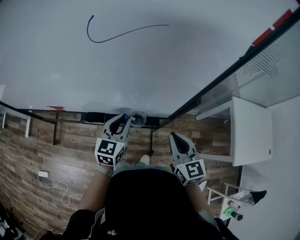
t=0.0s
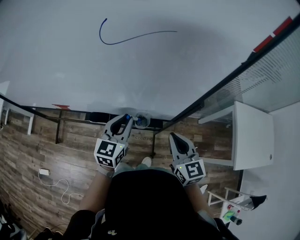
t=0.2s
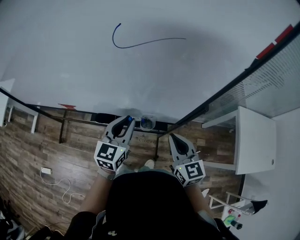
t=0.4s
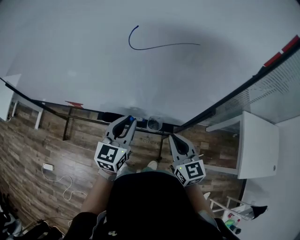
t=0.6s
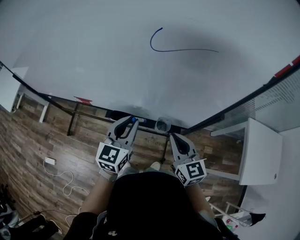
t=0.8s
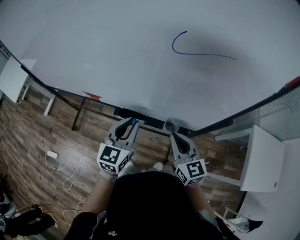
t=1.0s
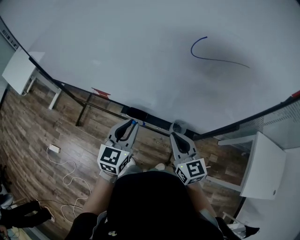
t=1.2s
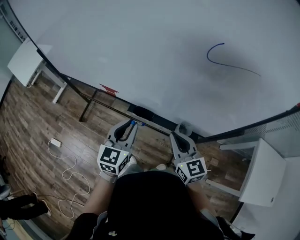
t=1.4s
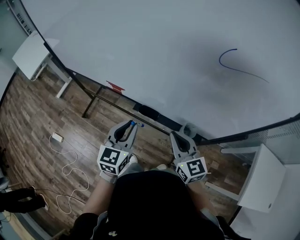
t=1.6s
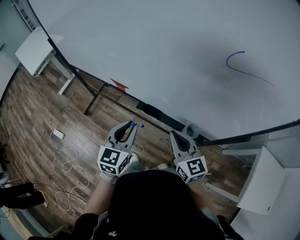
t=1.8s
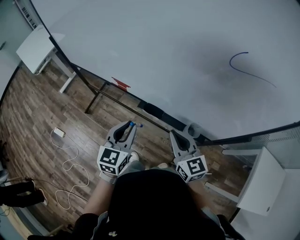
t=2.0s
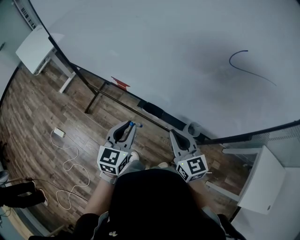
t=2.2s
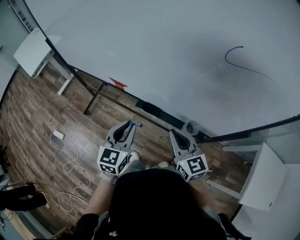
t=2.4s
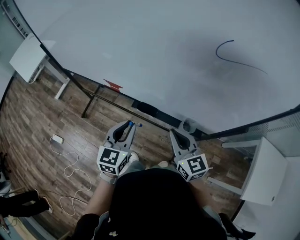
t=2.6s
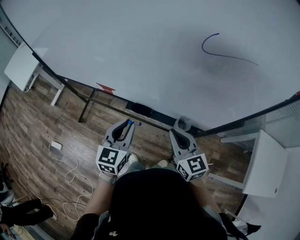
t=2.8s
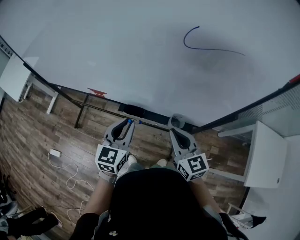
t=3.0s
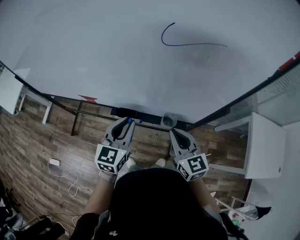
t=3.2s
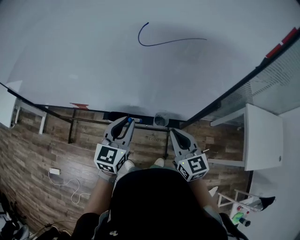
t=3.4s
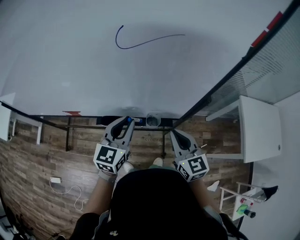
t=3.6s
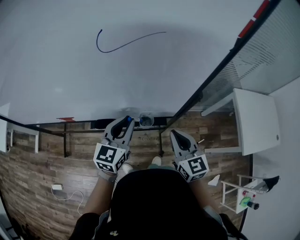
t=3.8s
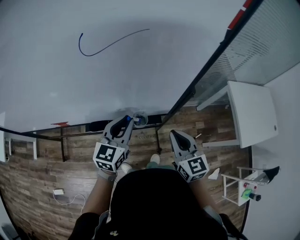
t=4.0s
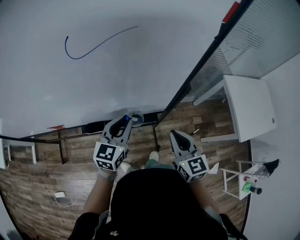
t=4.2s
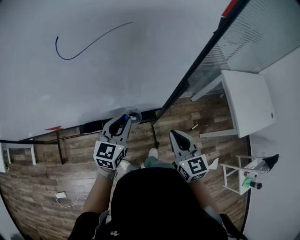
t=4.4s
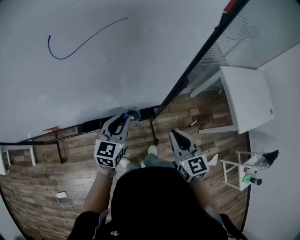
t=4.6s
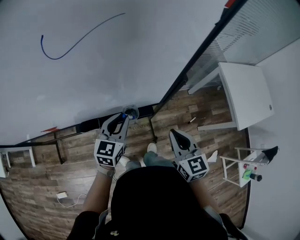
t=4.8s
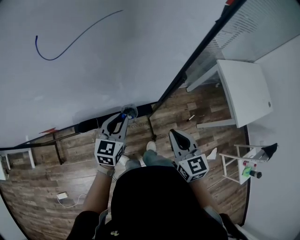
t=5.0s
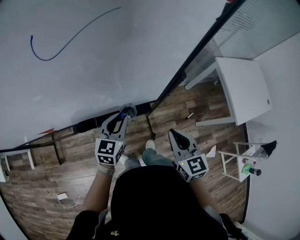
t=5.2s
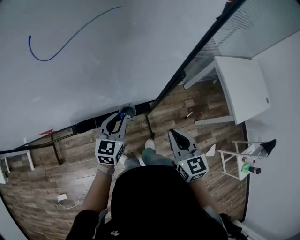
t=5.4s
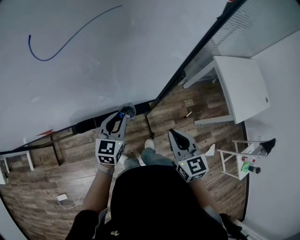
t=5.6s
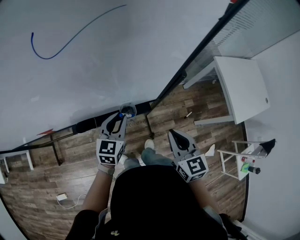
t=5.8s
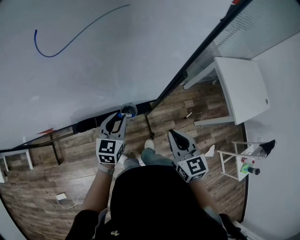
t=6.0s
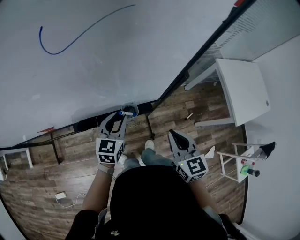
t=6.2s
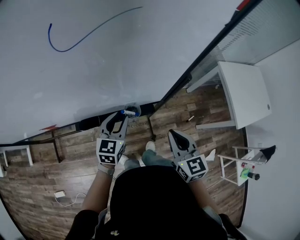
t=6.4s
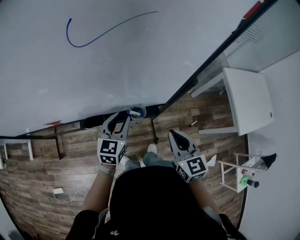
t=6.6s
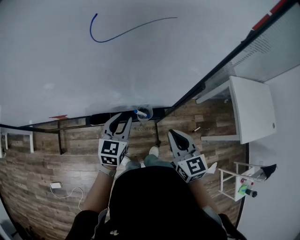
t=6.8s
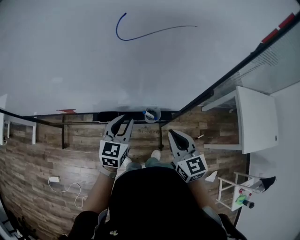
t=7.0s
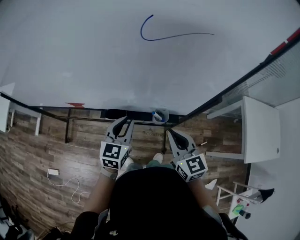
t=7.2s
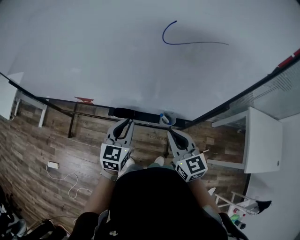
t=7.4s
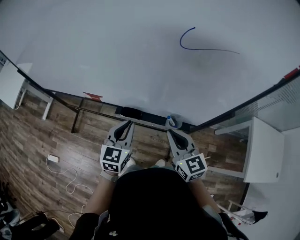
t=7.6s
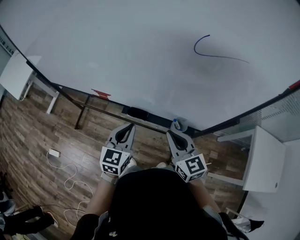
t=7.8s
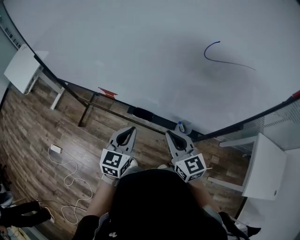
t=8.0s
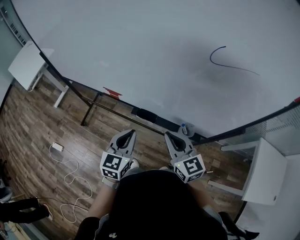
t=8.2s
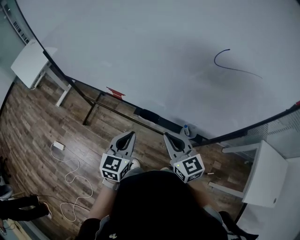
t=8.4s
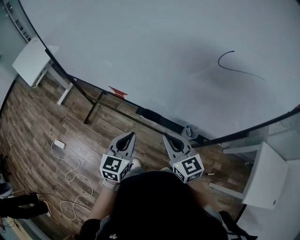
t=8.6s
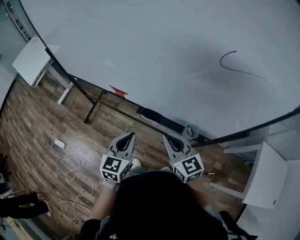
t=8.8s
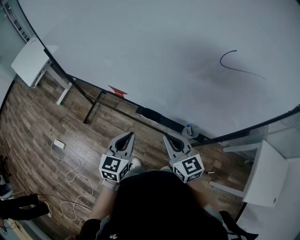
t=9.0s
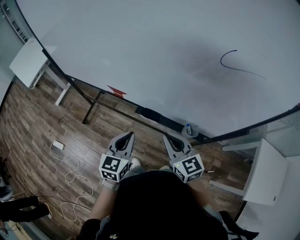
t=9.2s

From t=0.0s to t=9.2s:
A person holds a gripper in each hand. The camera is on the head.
From t=0.0s to t=1.6s: The right gripper shifts by some 25 cm, and swivels about 30 degrees; the left gripper shifts by about 25 cm, and changes its angle by roughly 20 degrees.
From t=1.6s to t=3.0s: The two grippers go approximately 5 cm to the right.
From t=3.0s to t=4.6s: The right gripper shifts by roughly 20 cm, and rotates about 30 degrees; the left gripper moves approximately 20 cm, and swivels about 30 degrees.
From t=4.6s to t=6.2s: The left gripper heads downward, covering roughly 5 cm.
From t=6.2s to t=7.6s: The left gripper shifts by some 20 cm, and swivels some 30 degrees, while the right gripper changes place by some 20 cm, and rotates about 30 degrees.
From t=7.6s to t=9.2s: Both grippers travel together to the left, some 10 cm.

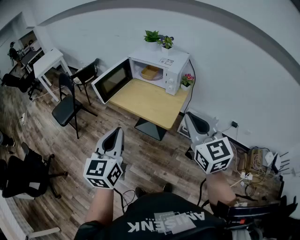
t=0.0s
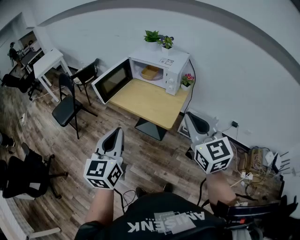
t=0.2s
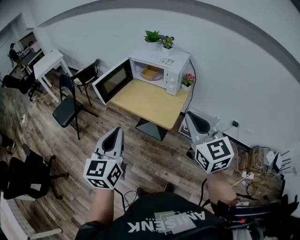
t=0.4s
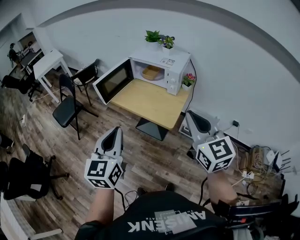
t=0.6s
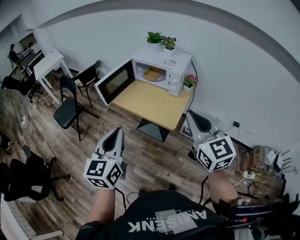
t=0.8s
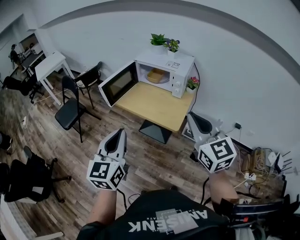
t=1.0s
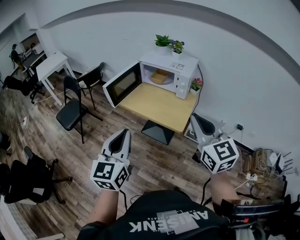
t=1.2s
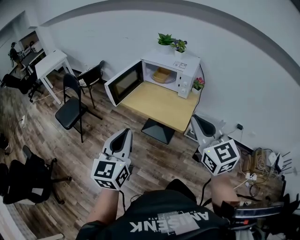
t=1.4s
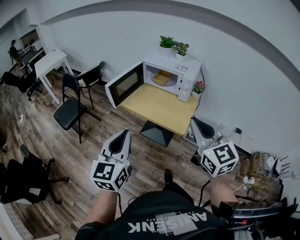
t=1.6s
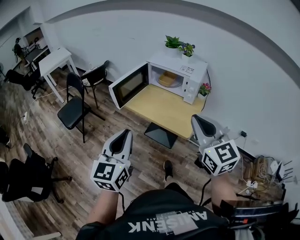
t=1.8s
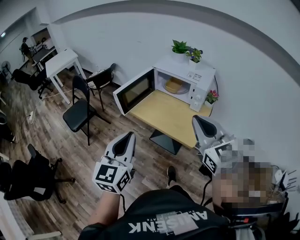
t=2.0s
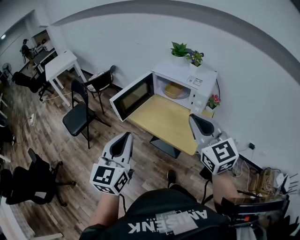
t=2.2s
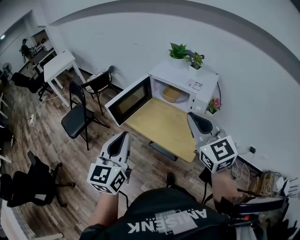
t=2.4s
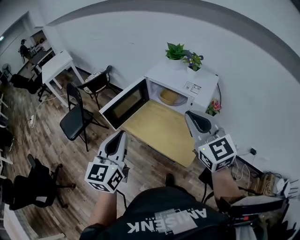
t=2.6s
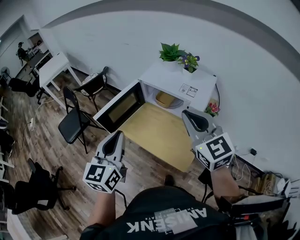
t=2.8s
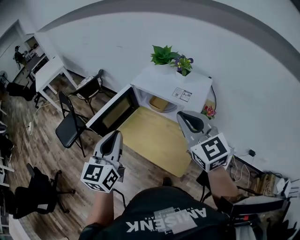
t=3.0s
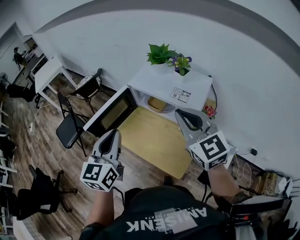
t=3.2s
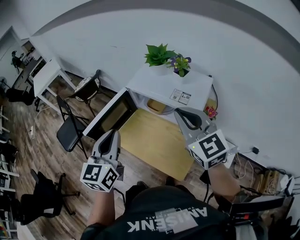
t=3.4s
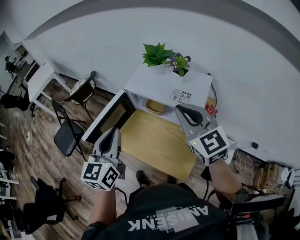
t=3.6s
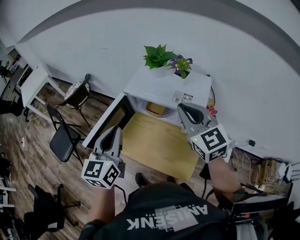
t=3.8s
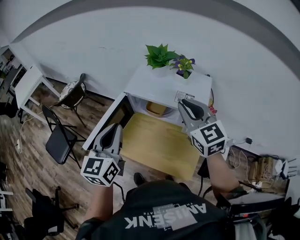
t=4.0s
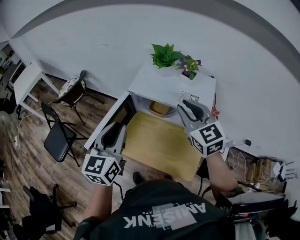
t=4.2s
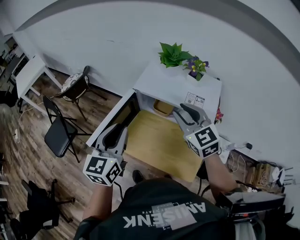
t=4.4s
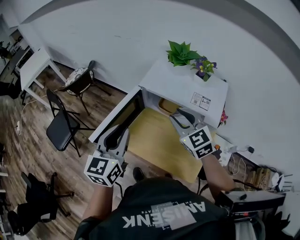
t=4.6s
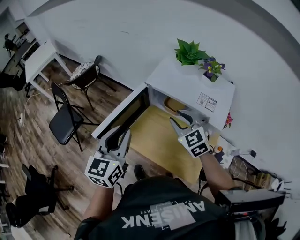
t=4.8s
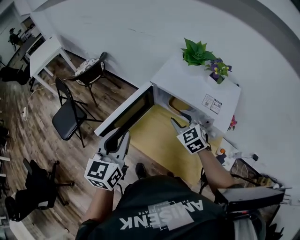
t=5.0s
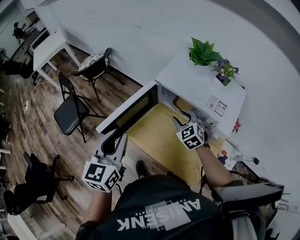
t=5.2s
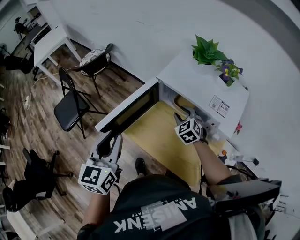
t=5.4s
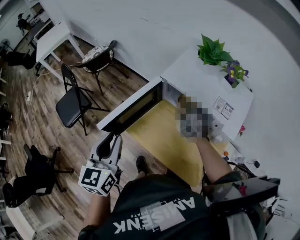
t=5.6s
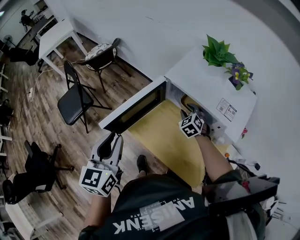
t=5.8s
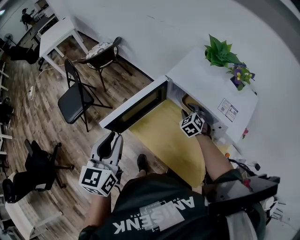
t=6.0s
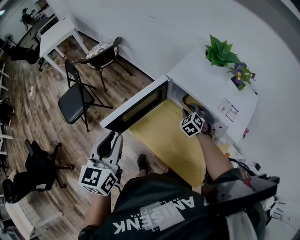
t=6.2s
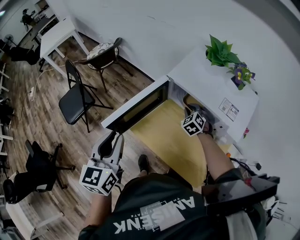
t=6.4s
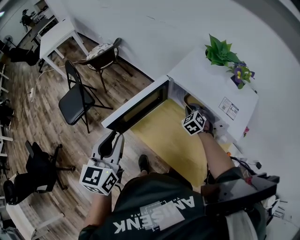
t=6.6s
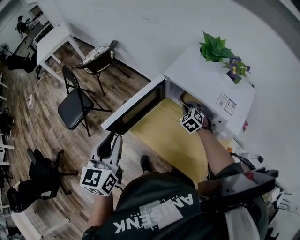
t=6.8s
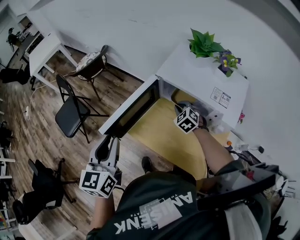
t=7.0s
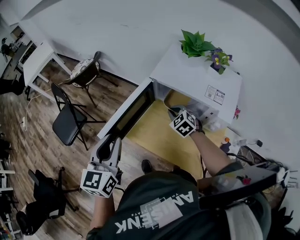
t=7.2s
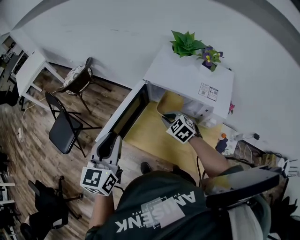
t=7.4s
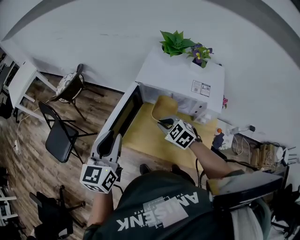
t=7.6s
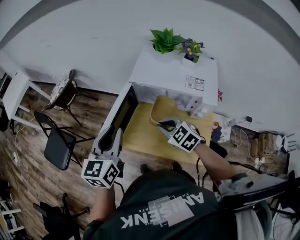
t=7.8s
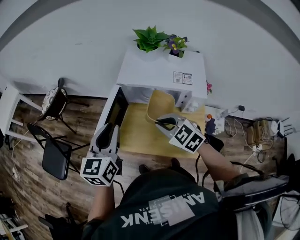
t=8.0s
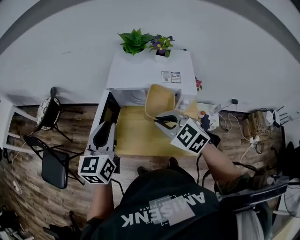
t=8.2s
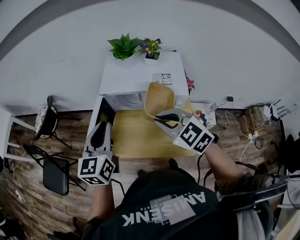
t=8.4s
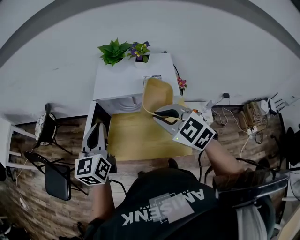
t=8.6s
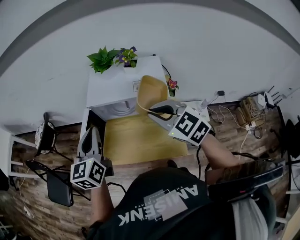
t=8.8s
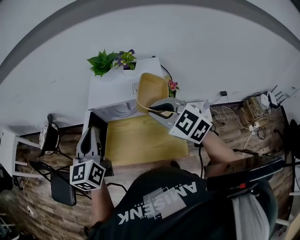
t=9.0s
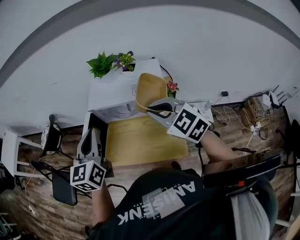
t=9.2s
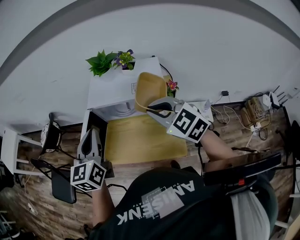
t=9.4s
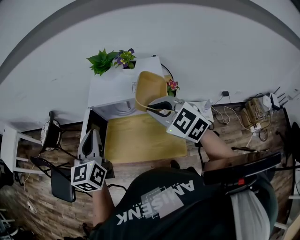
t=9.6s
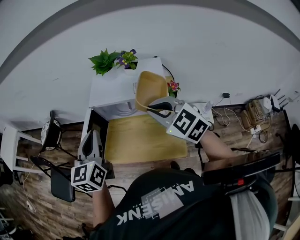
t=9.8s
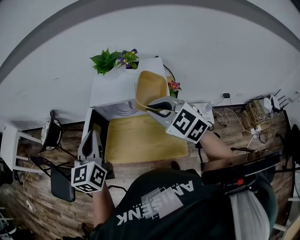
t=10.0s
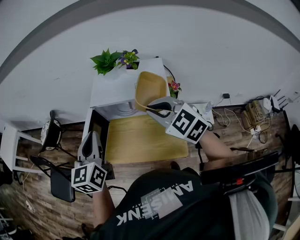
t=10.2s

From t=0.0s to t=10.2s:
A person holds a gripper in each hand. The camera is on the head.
From t=0.0s to t=1.4s: The two grippers go about 10 cm to the left.
From t=1.4s to t=3.0s: The grippers both shift forward by roughly 35 cm.
From t=3.0s to t=4.4s: The right gripper is displaced forward and downward by roughly 15 cm, and opens. Meanwhile the left gripper shifts roughly 15 cm forward.
From t=4.4s to t=5.8s: The right gripper shifts about 30 cm downward and forward, and changes its angle by roughly 30 degrees, while the left gripper travels to the left by roughly 10 cm, and swivels some 20 degrees.
From t=5.8s to t=7.2s: The right gripper goes approximately 5 cm to the left, and closes up.
From t=7.2s to t=8.8s: The right gripper is displaced upward and backward by some 30 cm, and swivels roughly 20 degrees; the left gripper goes approximately 15 cm to the right, forward and upward, and changes its angle by approximately 20 degrees.
From t=8.8s to t=10.2s: The grippers move only a little.

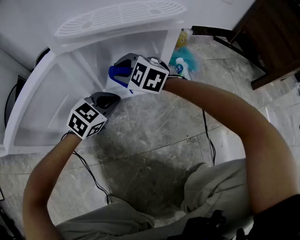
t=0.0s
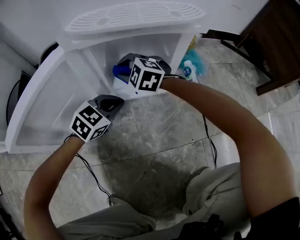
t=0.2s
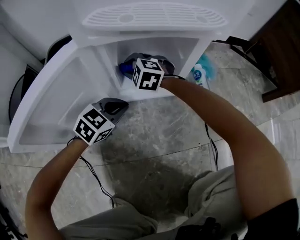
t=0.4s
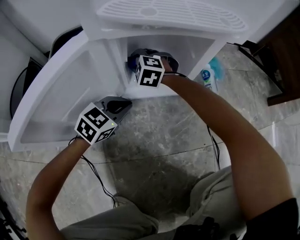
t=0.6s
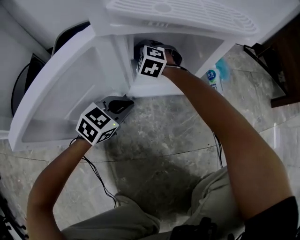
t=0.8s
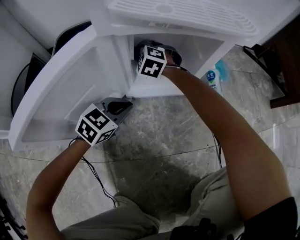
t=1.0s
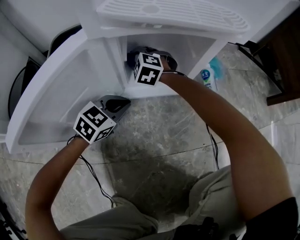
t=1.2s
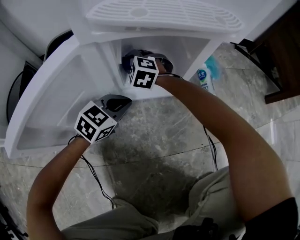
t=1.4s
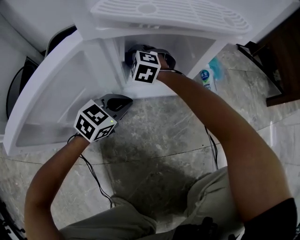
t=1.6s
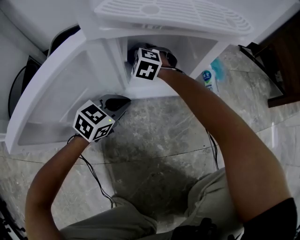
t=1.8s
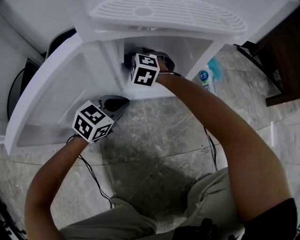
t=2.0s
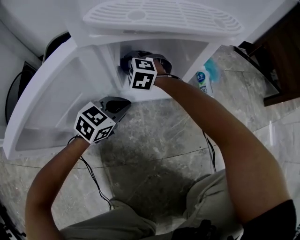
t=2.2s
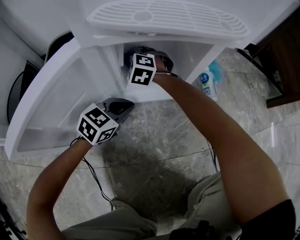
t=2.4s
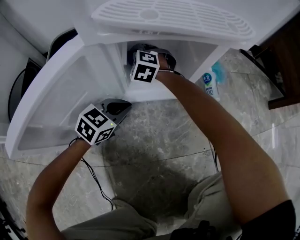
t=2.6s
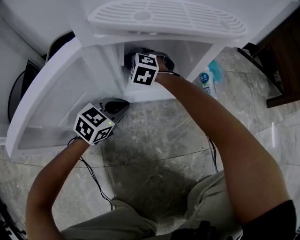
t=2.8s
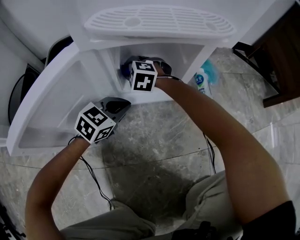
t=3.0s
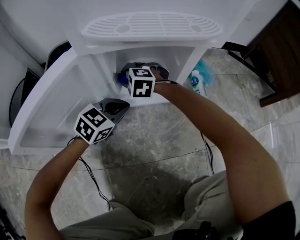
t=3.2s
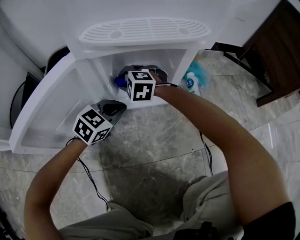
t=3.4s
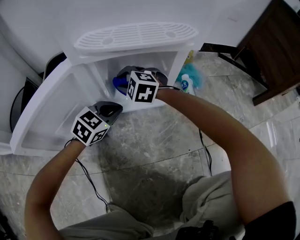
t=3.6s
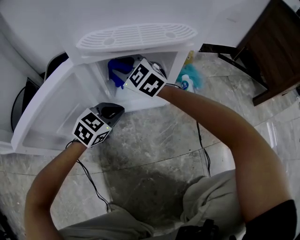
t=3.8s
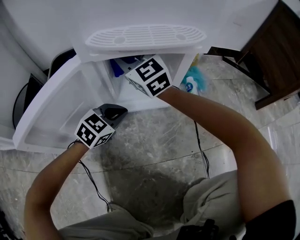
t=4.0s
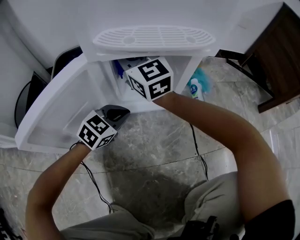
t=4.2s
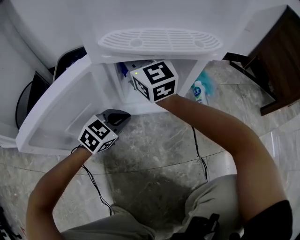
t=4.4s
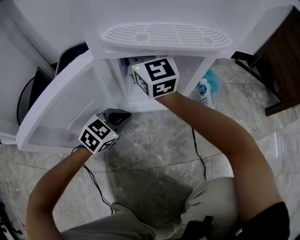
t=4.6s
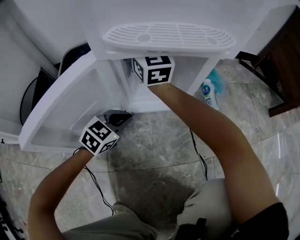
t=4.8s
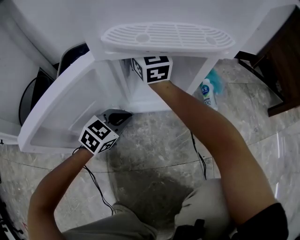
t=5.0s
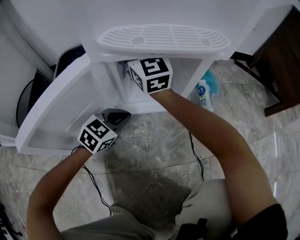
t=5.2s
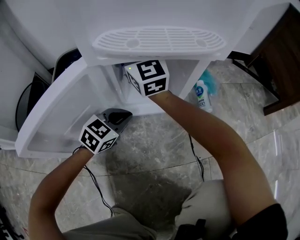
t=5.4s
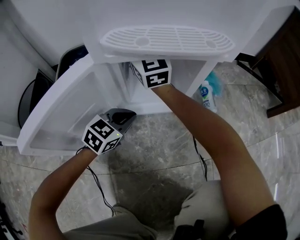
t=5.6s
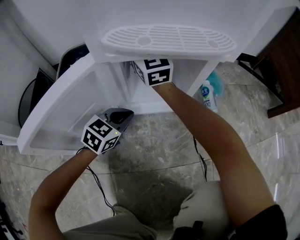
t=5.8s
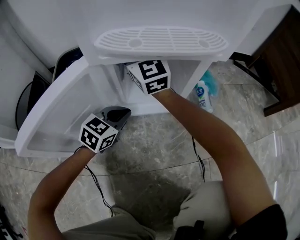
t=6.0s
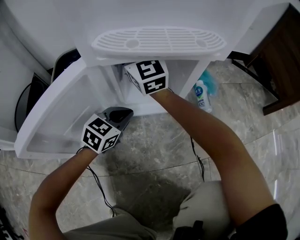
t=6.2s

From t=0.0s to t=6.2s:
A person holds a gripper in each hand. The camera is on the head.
From t=0.0s to t=1.6s: The right gripper is displaced downward, forward and to the left by roughly 15 cm.
From t=1.6s to t=3.2s: The right gripper moves backward, approximately 5 cm.
From t=3.2s to t=4.6s: The right gripper travels upward by approximately 25 cm, and angles its fingers upward, by some 60 degrees.
From t=4.6s to t=6.2s: The grippers stay close to where they were, moving slightly.
